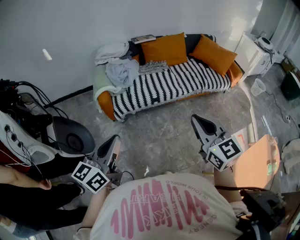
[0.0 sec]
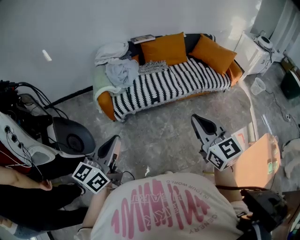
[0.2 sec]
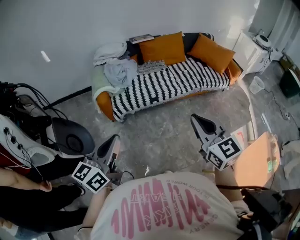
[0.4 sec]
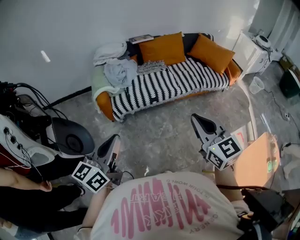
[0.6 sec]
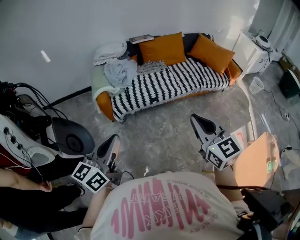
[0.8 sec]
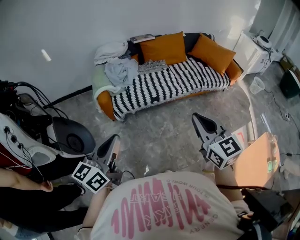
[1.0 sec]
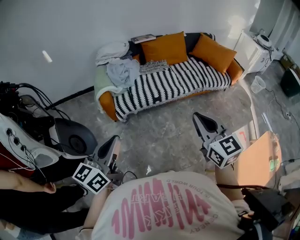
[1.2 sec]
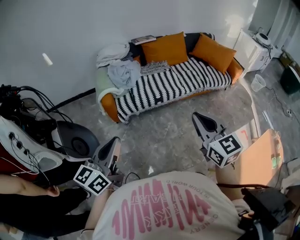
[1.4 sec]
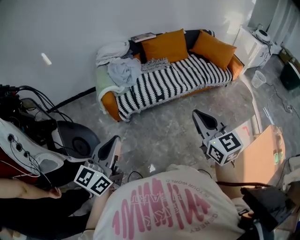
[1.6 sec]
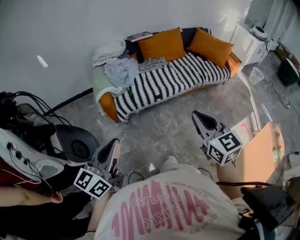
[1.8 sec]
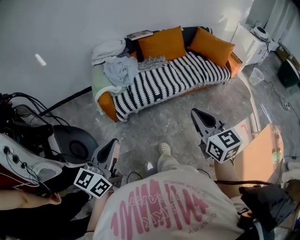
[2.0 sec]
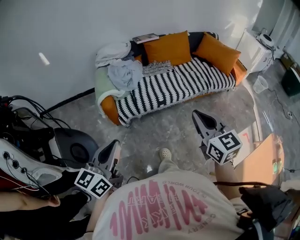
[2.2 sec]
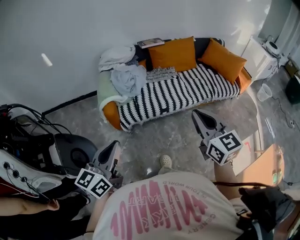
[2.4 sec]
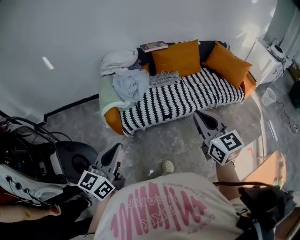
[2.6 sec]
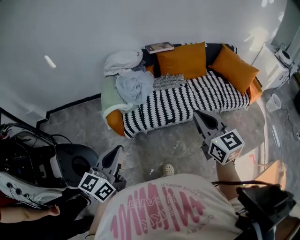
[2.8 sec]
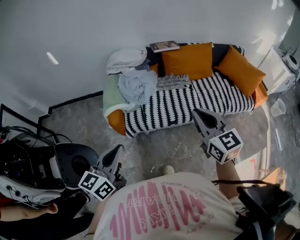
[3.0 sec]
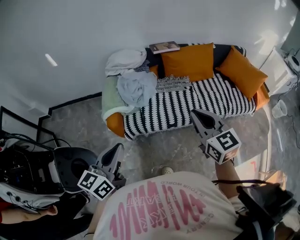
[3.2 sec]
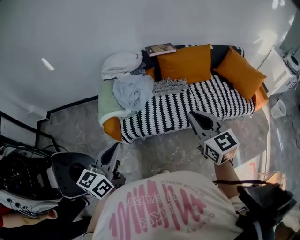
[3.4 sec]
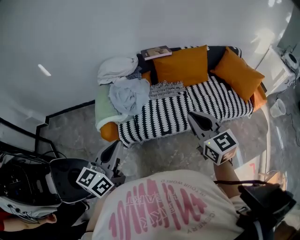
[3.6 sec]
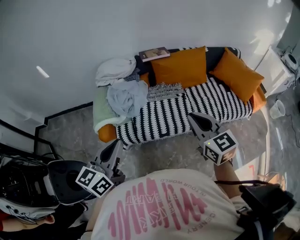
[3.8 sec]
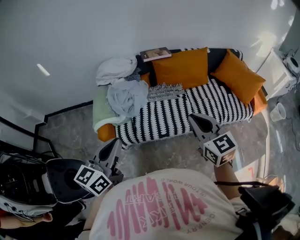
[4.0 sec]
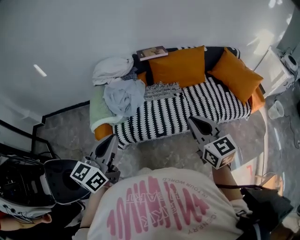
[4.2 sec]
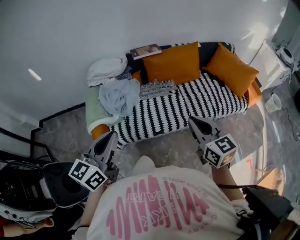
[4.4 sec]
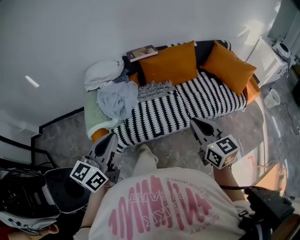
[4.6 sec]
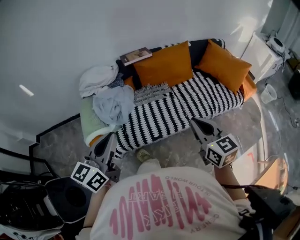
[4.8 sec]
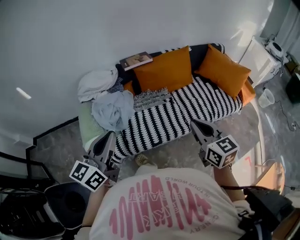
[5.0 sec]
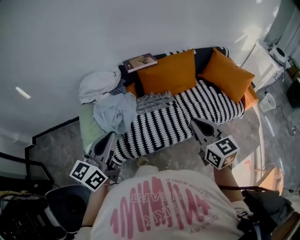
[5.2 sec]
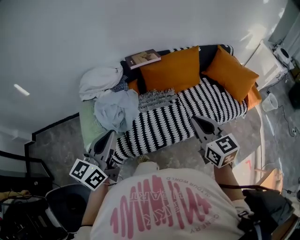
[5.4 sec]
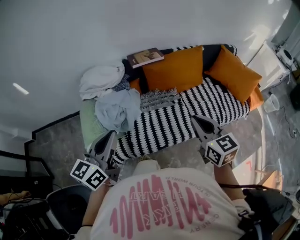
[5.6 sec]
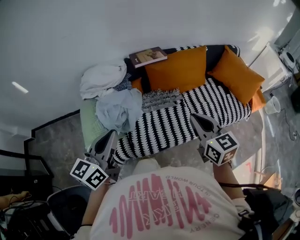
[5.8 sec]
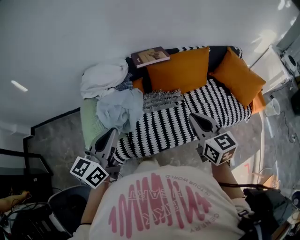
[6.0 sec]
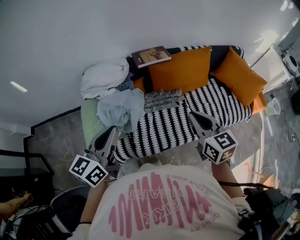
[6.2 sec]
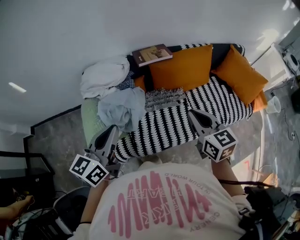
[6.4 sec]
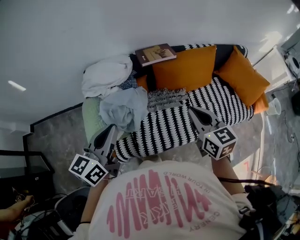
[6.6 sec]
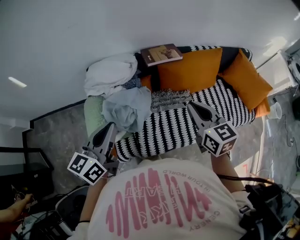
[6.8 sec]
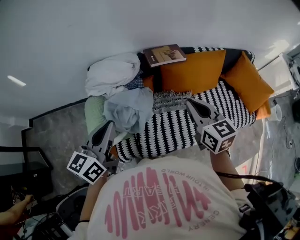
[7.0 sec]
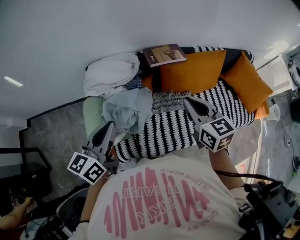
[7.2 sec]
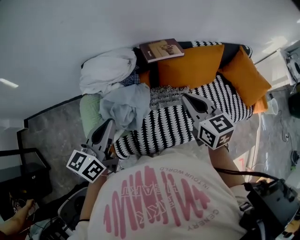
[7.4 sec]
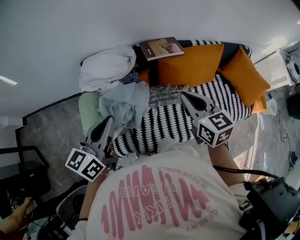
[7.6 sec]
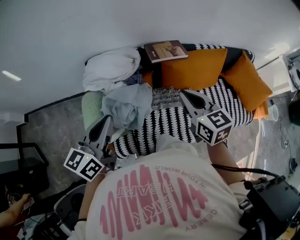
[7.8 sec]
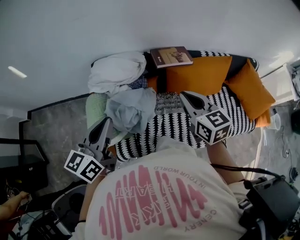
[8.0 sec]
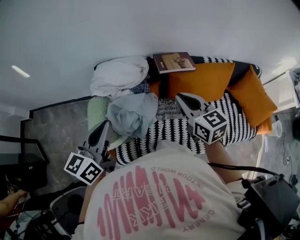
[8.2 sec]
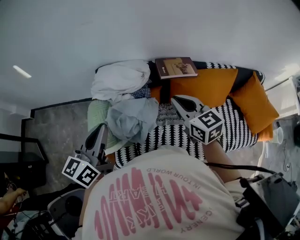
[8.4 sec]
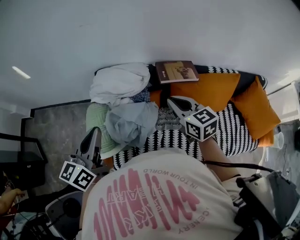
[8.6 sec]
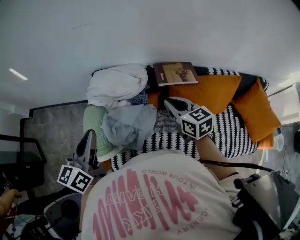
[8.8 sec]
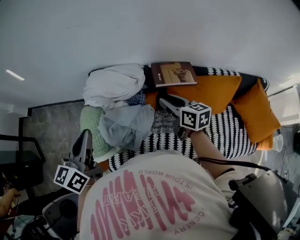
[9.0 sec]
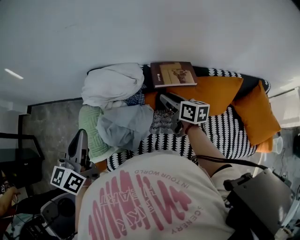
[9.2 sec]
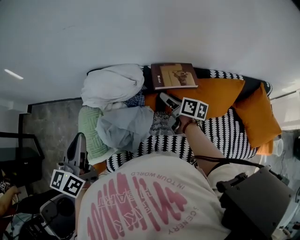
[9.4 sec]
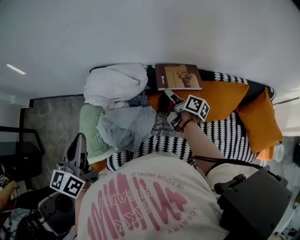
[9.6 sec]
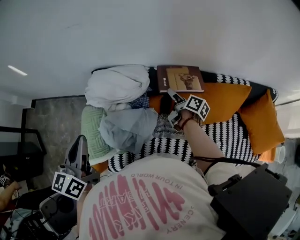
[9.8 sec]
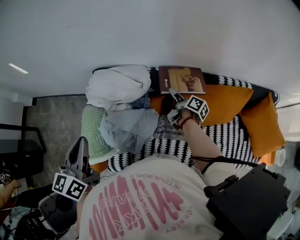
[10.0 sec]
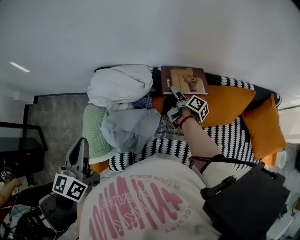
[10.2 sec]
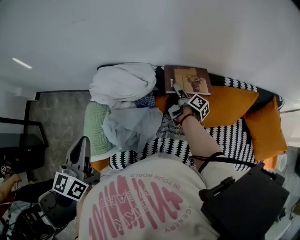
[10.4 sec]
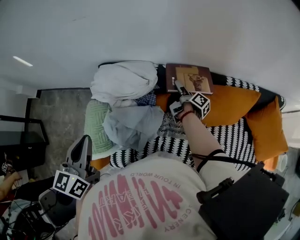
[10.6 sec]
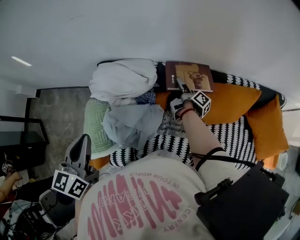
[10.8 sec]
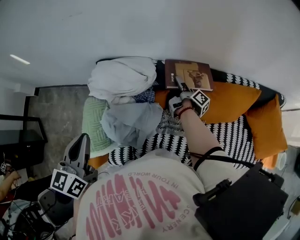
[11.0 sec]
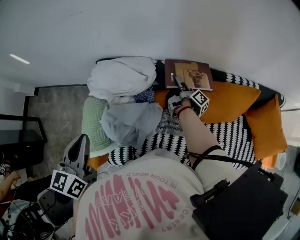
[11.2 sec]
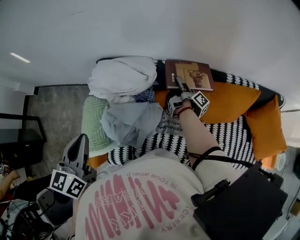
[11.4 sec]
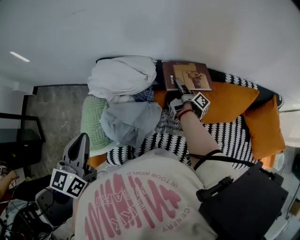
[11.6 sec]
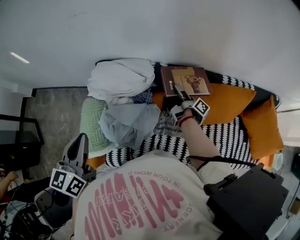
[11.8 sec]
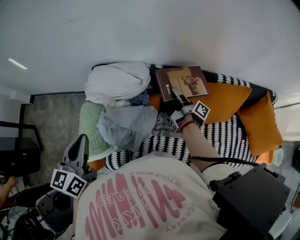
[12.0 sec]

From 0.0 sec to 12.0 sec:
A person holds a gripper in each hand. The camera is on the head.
From 0.0 sec to 1.6 sec: The grippers move only a little.
From 1.6 sec to 3.0 sec: Both grippers move forward, some 20 cm.
From 3.0 sec to 4.4 sec: The left gripper travels forward and to the right by roughly 15 cm; the right gripper shifts some 10 cm to the right and forward.
From 4.4 sec to 6.0 sec: Both grippers move forward, roughly 15 cm.
From 6.0 sec to 7.6 sec: The grippers both shift forward and to the left by approximately 15 cm.
From 7.6 sec to 9.0 sec: The right gripper is displaced forward and downward by some 20 cm, swivels approximately 20 degrees, and opens; the left gripper heads forward and to the left, covering roughly 10 cm, and changes its angle by about 20 degrees.
From 9.0 sec to 10.4 sec: The right gripper travels downward, forward and to the right by some 20 cm, twists roughly 60 degrees clockwise, seen from behind, and opens up.
From 10.4 sec to 12.0 sec: The right gripper ends up about 5 cm from where it was, and closes up.

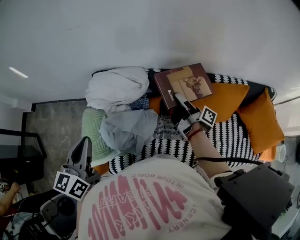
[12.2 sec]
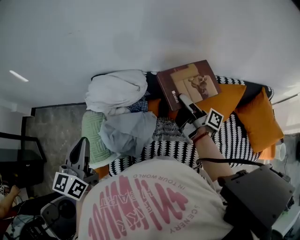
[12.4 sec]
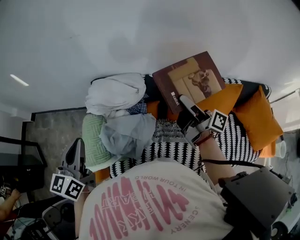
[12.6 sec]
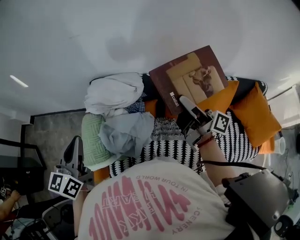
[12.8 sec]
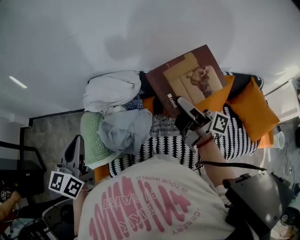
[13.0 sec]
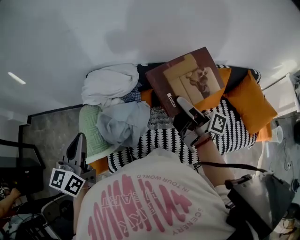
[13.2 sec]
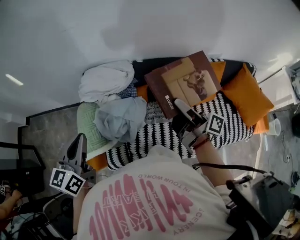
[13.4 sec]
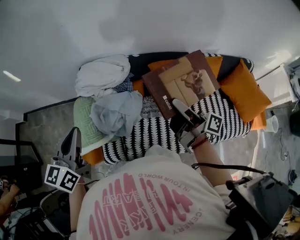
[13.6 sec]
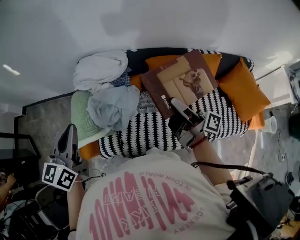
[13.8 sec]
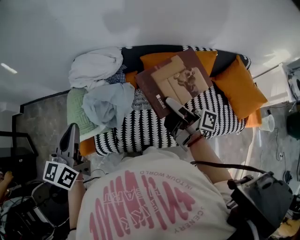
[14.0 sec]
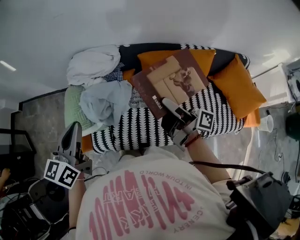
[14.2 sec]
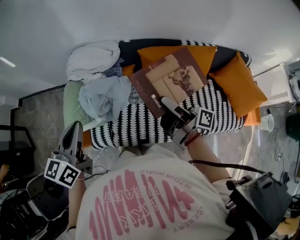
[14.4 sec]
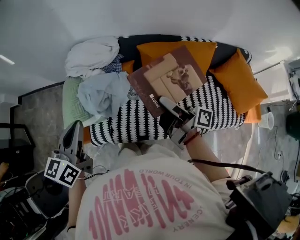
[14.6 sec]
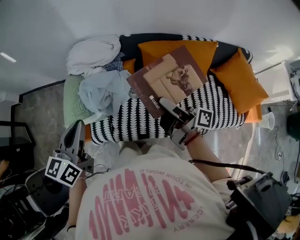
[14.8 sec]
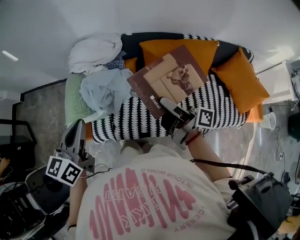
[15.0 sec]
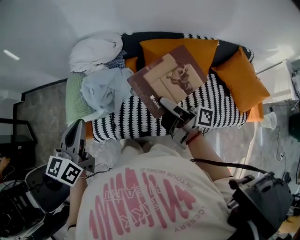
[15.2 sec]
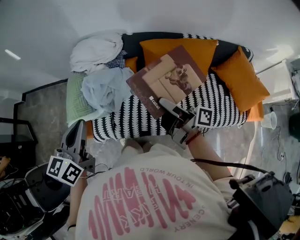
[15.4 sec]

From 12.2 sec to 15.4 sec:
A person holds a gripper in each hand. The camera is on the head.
From 12.2 sec to 13.8 sec: The right gripper shifts roughly 25 cm backward and upward. Meanwhile the left gripper shifts roughly 10 cm backward.
From 13.8 sec to 15.4 sec: The grippers both shift backward by roughly 10 cm.

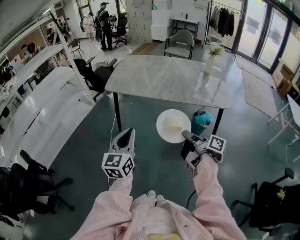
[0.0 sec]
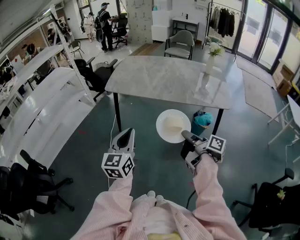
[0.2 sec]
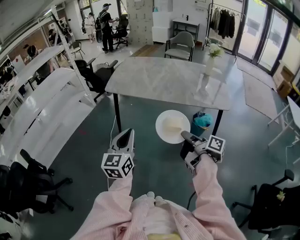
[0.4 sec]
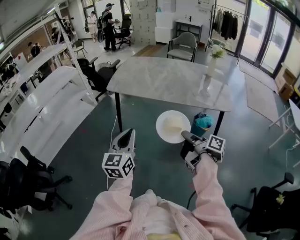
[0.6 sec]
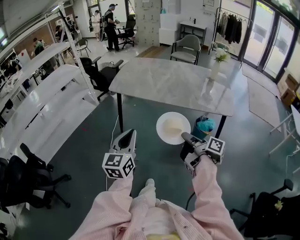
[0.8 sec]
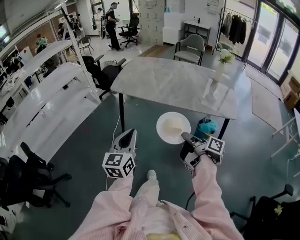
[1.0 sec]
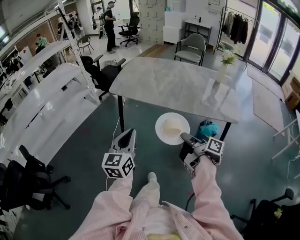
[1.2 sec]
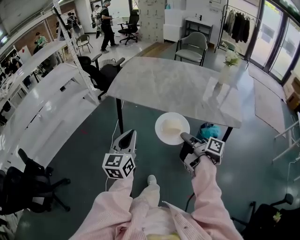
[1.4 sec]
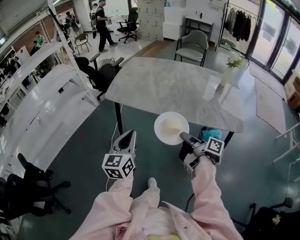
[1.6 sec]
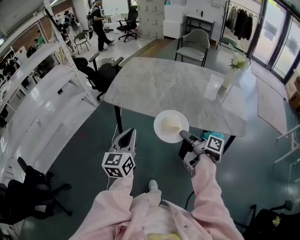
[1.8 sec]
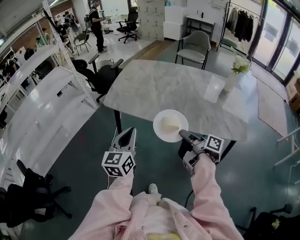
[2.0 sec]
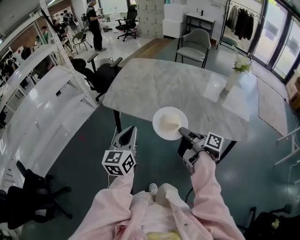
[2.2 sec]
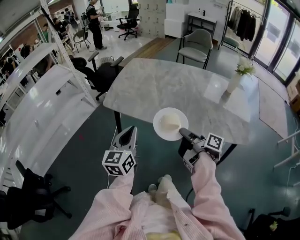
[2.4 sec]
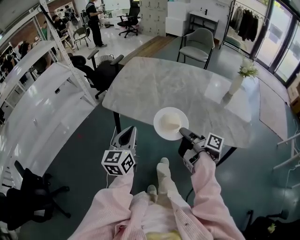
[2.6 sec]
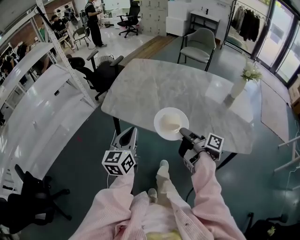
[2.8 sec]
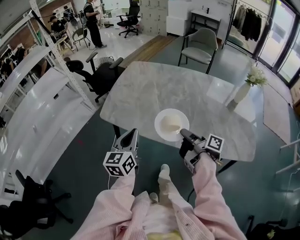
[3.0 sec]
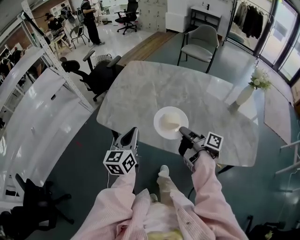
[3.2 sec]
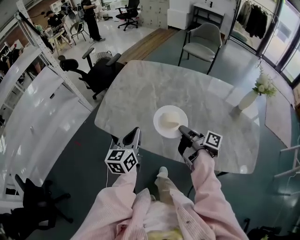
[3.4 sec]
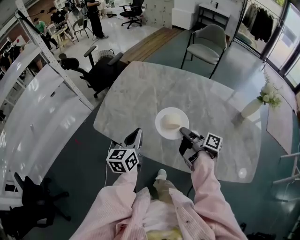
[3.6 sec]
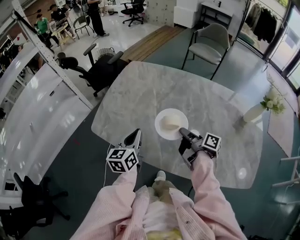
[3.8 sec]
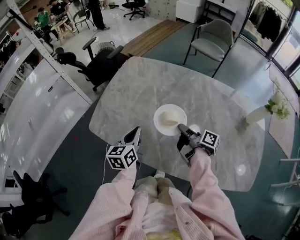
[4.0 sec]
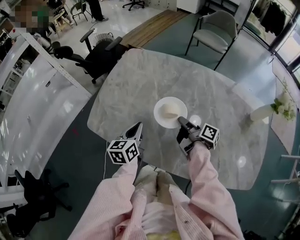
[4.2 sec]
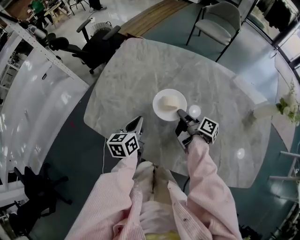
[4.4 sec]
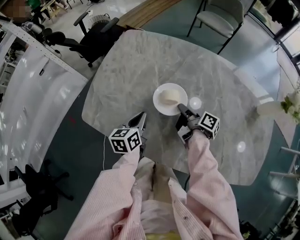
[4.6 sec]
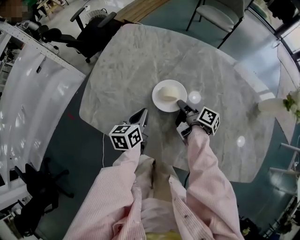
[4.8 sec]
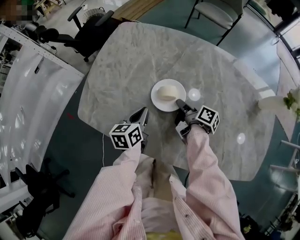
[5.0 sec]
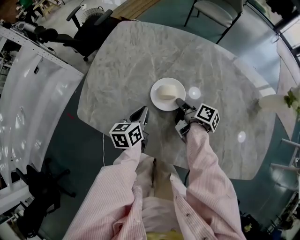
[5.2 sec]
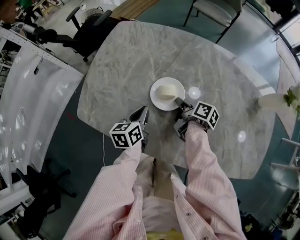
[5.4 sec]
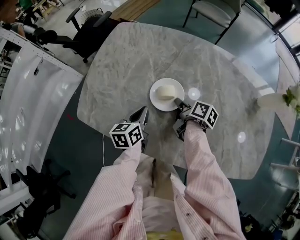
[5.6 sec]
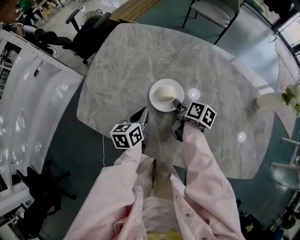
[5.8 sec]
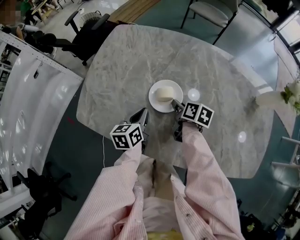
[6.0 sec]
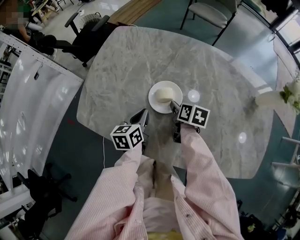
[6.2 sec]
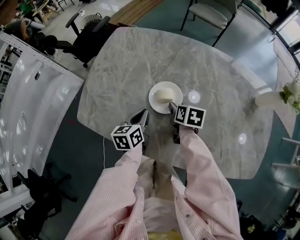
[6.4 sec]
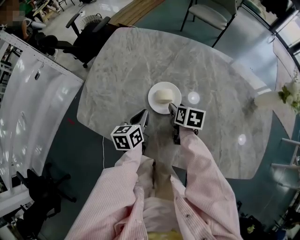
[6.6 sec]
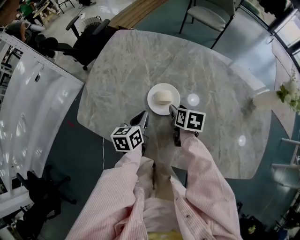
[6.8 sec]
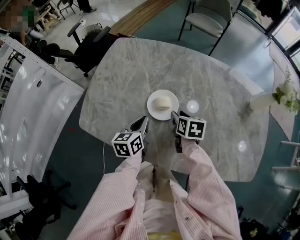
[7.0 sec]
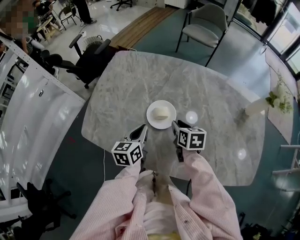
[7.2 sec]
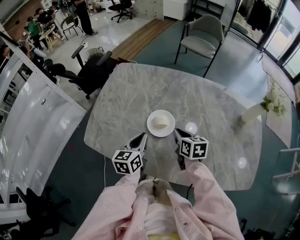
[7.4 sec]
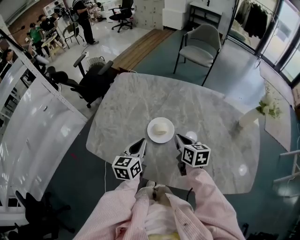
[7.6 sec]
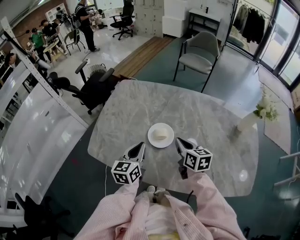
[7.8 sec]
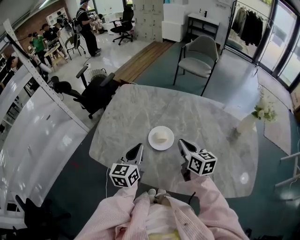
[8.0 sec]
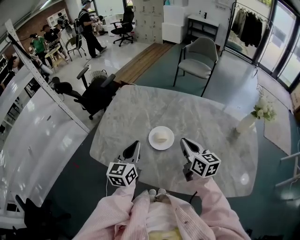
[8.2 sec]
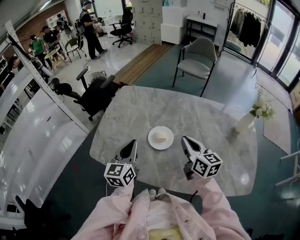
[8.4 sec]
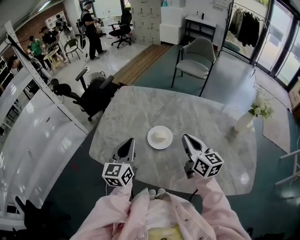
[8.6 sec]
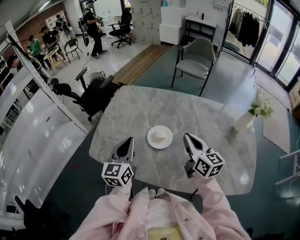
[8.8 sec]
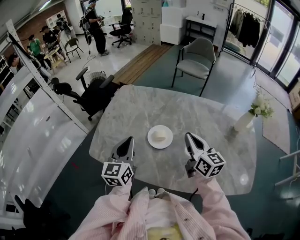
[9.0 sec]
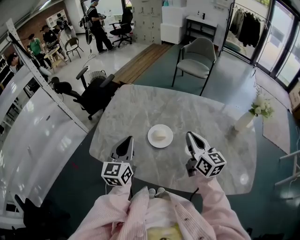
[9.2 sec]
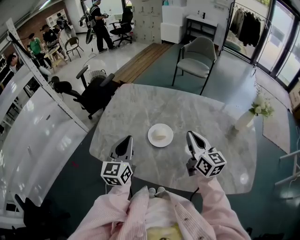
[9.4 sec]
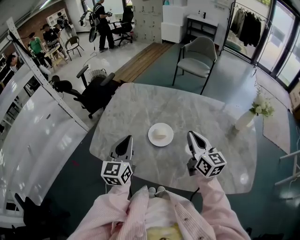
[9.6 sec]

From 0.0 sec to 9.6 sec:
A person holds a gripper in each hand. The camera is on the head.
From 0.0 sec to 1.6 sec: The two grippers go approximately 20 cm forward.
From 1.6 sec to 3.2 sec: Both grippers move forward, approximately 30 cm.
From 3.2 sec to 4.8 sec: Both grippers travel together forward and downward, roughly 25 cm. The left gripper rotates approximately 30 degrees.
From 4.8 sec to 6.4 sec: The right gripper rolls counterclockwise, seen from behind, by roughly 40 degrees, and opens.
From 6.4 sec to 8.0 sec: Both grippers move upward, roughly 15 cm. The right gripper tilts its fingers approximately 30 degrees upward, and closes. Meanwhile the left gripper changes its angle by approximately 30 degrees.
From 8.0 sec to 9.6 sec: Both grippers move upward, about 5 cm.
